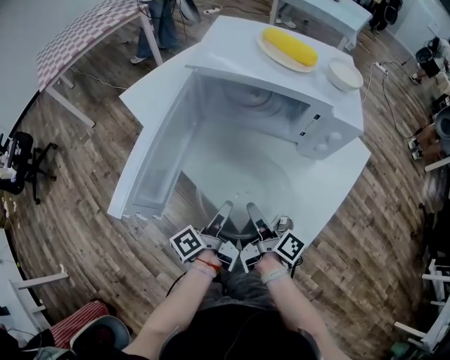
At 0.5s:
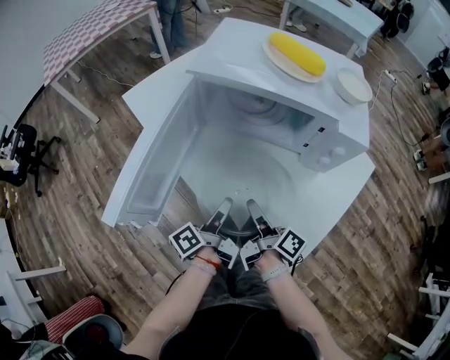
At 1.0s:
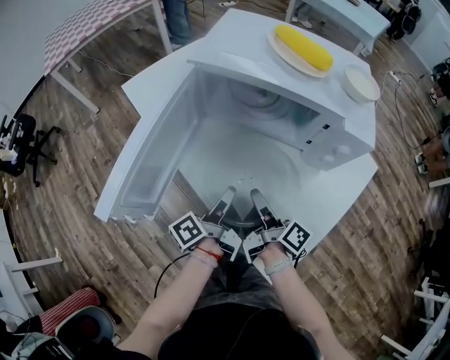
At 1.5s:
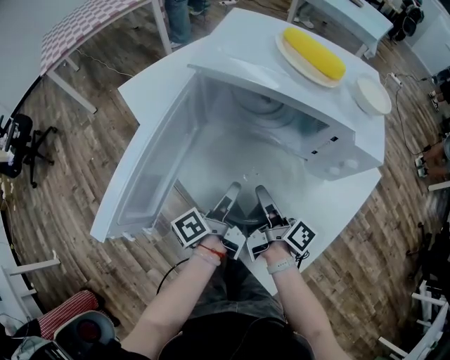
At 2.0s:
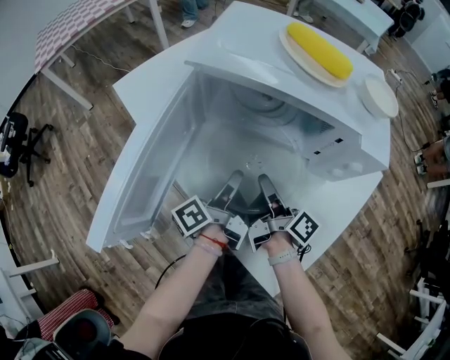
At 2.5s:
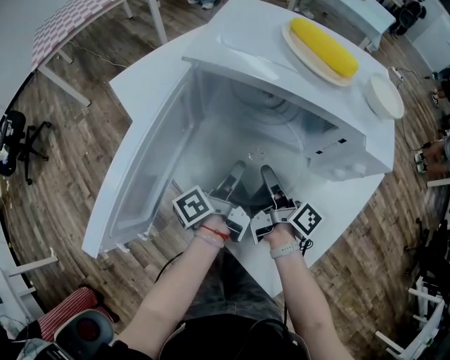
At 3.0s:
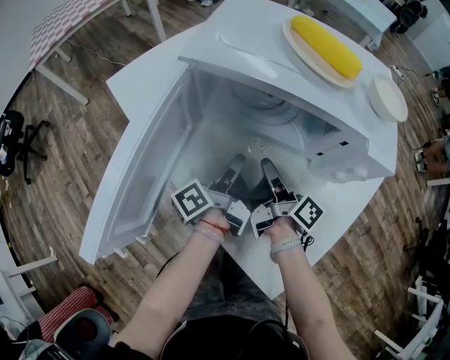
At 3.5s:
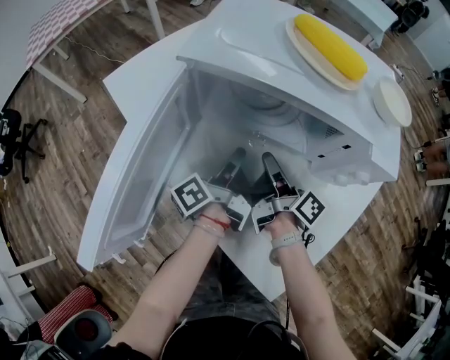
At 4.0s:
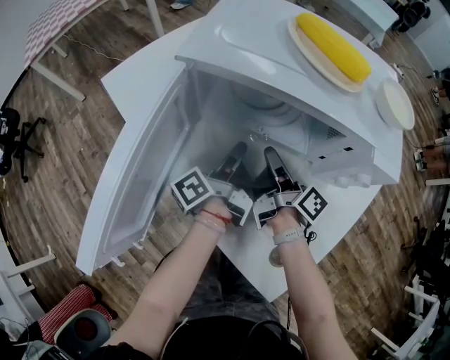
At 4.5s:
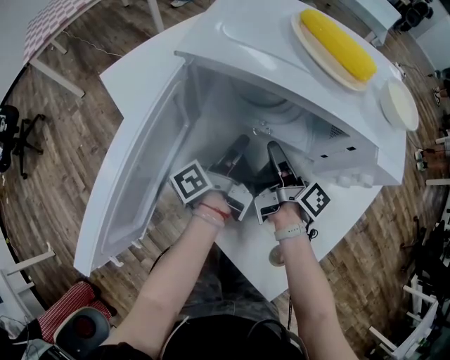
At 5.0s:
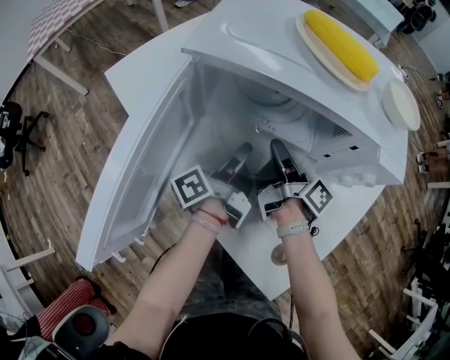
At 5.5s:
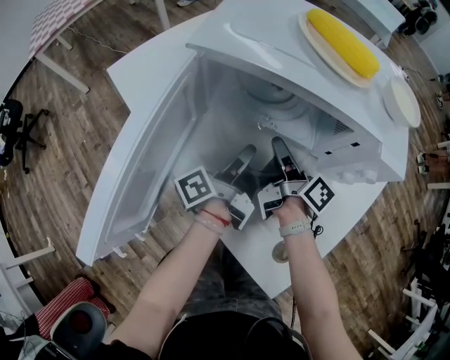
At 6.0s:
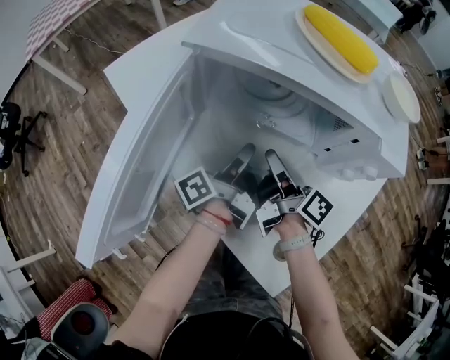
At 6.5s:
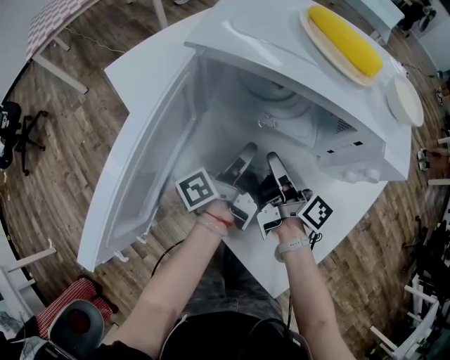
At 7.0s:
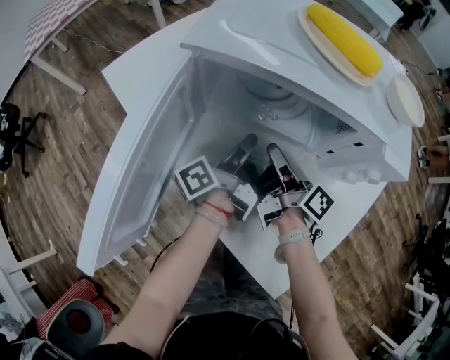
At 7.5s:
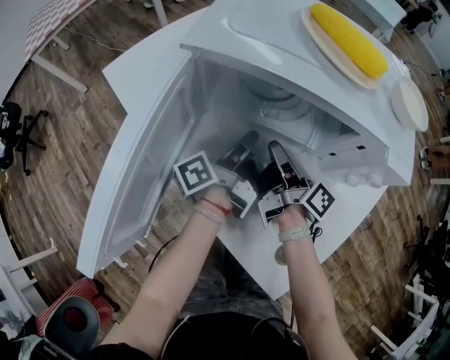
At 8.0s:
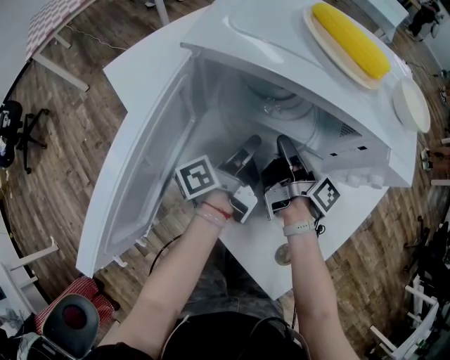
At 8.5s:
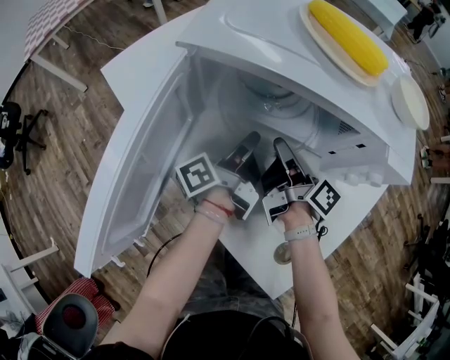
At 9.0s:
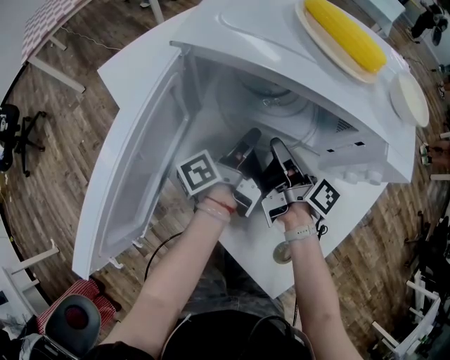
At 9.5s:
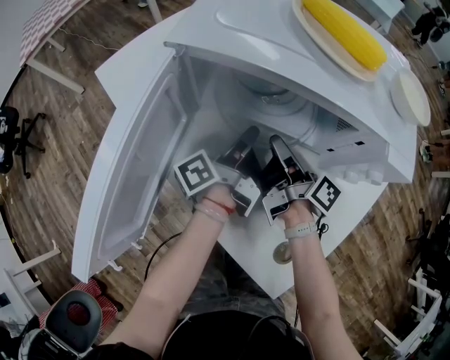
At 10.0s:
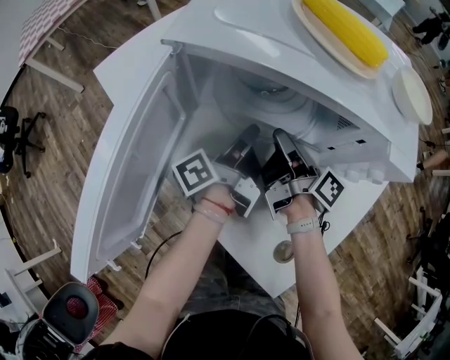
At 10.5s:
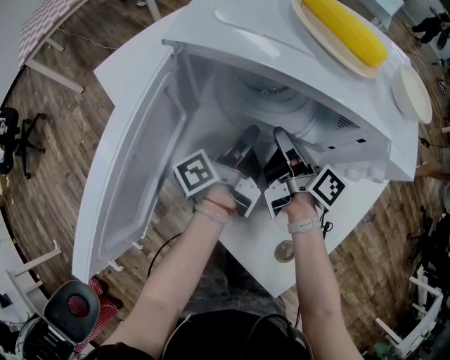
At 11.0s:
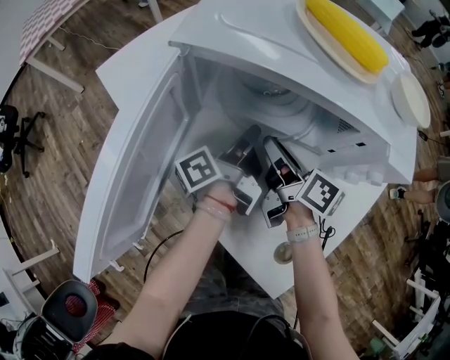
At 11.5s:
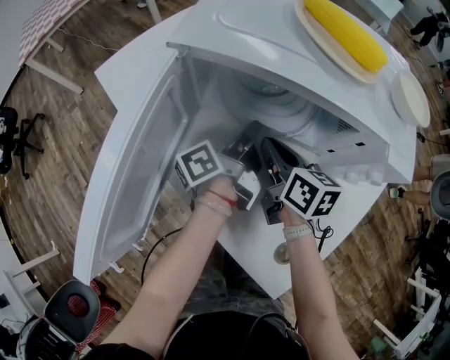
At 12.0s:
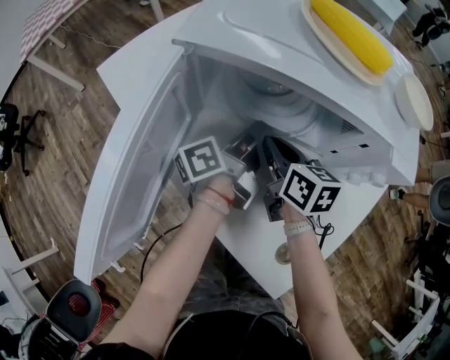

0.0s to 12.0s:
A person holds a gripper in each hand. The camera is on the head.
0.0s to 2.0s: The right gripper moves roughly 10 cm.
2.0s to 4.0s: The right gripper ends up about 10 cm from where it was.
10.0s to 12.0s: The right gripper twists about 50 degrees counterclockwise, seen from behind.

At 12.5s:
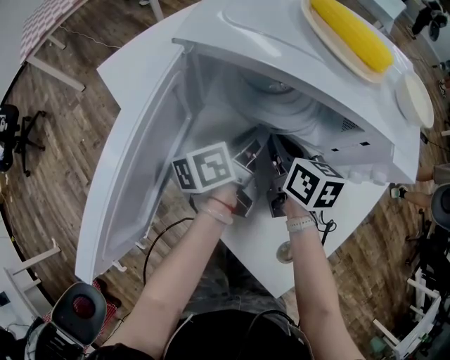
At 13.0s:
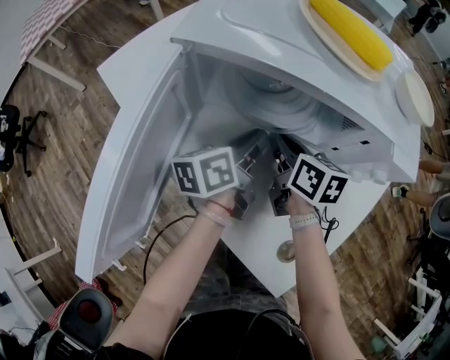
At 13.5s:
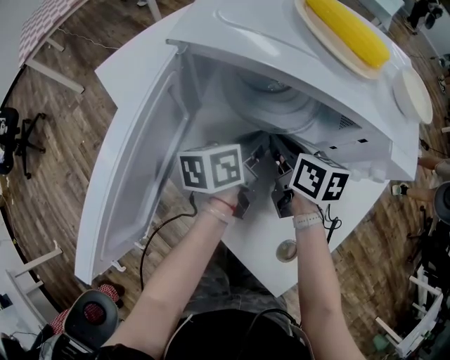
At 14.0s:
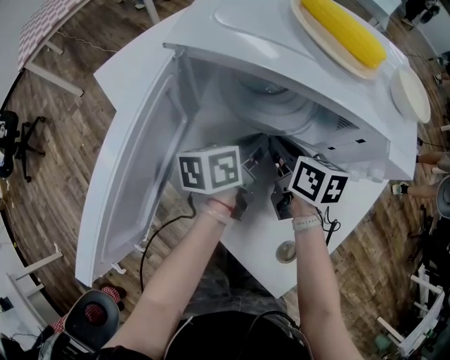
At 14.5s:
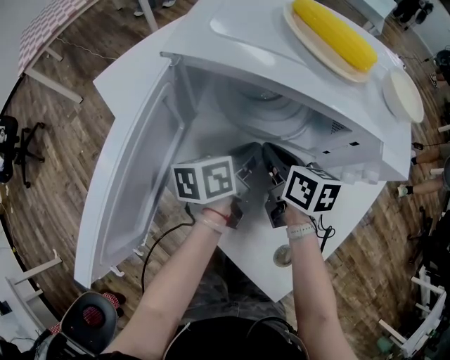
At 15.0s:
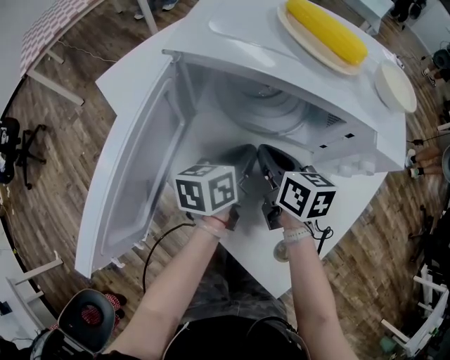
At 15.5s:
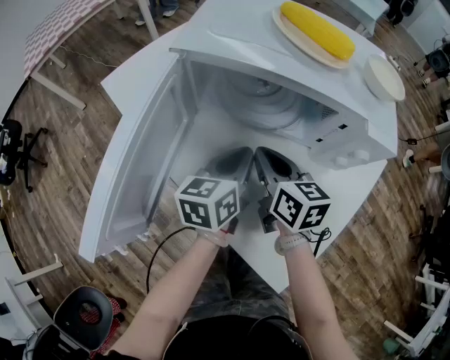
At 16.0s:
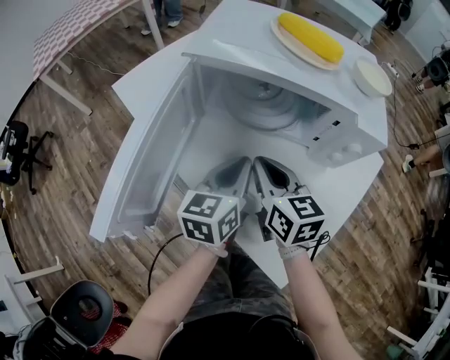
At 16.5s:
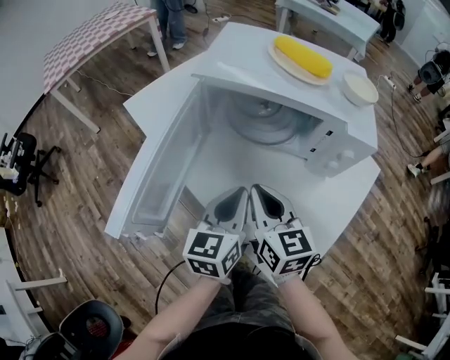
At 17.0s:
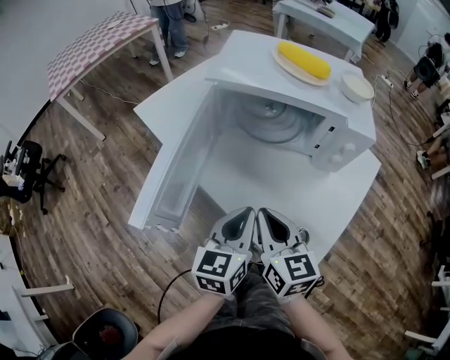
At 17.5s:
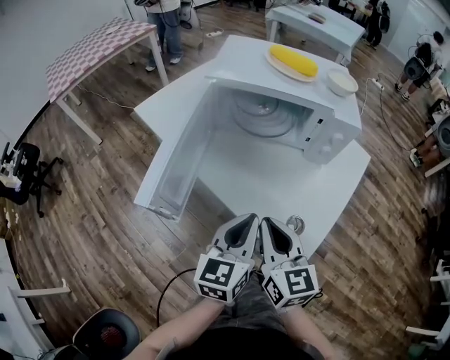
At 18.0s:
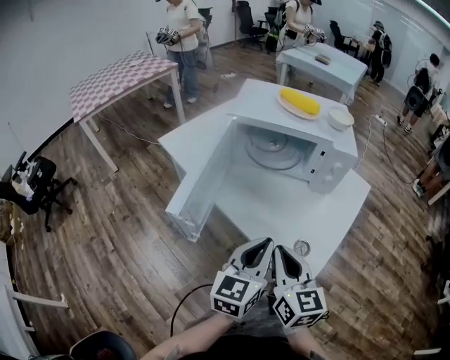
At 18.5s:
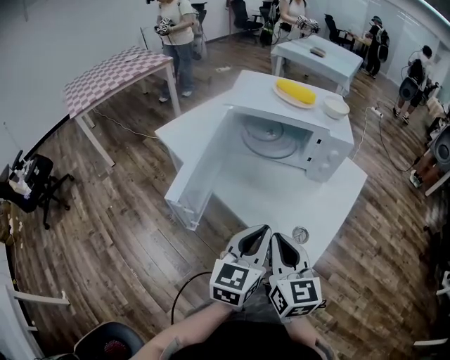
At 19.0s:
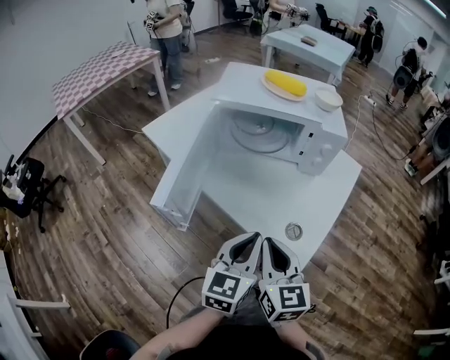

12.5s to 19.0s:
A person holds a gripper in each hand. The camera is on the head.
14.5s to 17.0s: The right gripper moves about 25 cm, and rotates some 30 degrees.
17.0s to 19.0s: The right gripper moves roughly 10 cm.

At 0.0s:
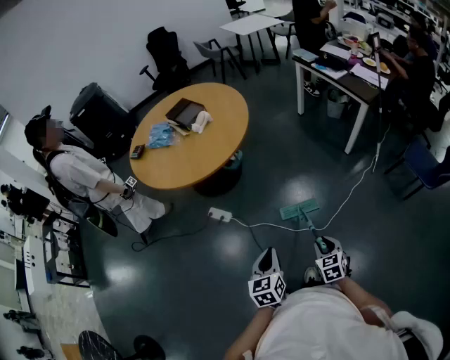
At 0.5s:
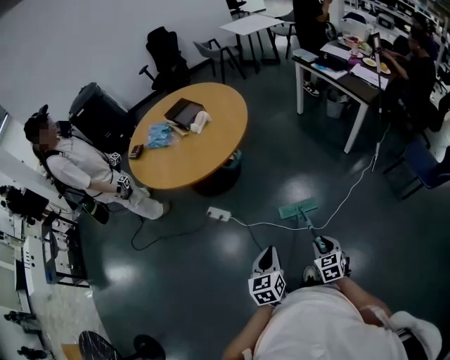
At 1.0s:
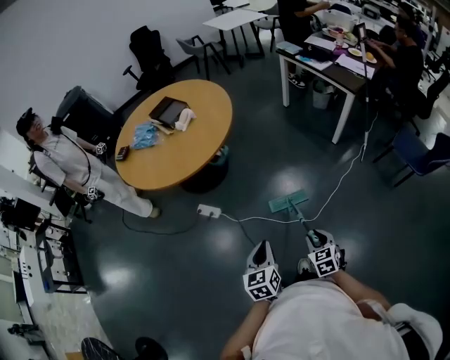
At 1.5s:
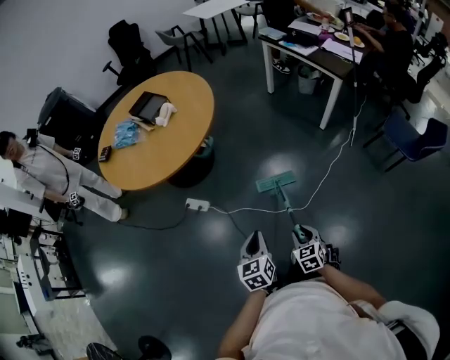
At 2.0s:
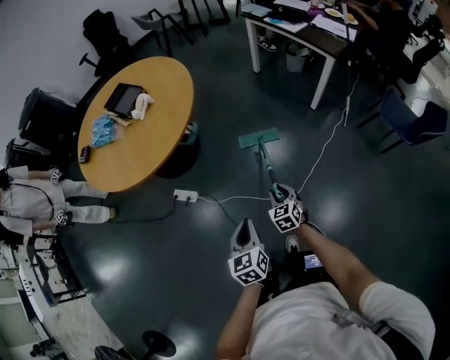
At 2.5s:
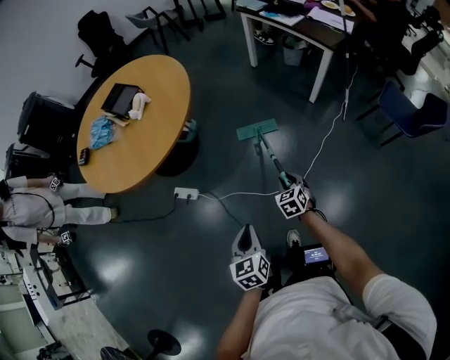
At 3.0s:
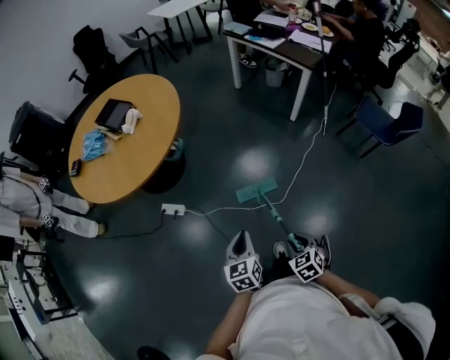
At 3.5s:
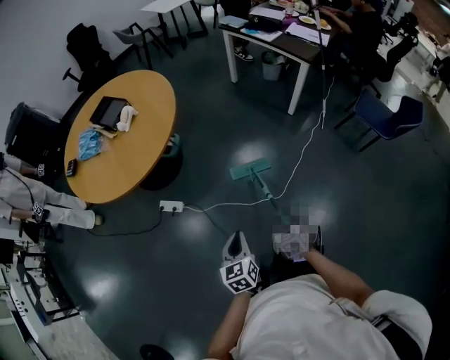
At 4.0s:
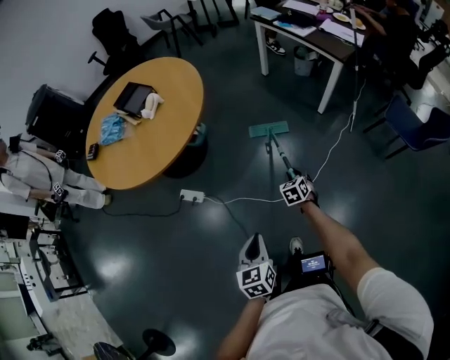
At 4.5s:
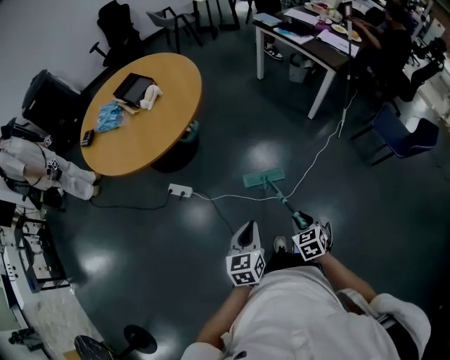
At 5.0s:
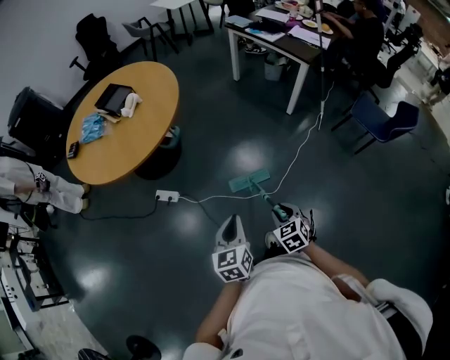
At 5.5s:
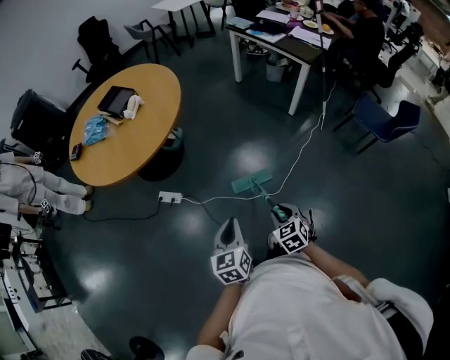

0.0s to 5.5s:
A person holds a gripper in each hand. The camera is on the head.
0.0s to 2.0s: The right gripper goes some 20 cm forward and downward. Meanwhile the left gripper moves forward, roughly 10 cm.
2.0s to 3.5s: The right gripper moves backward and to the right, about 15 cm. The left gripper goes about 5 cm backward.
3.5s to 5.5s: Both grippers travel together upward, roughly 5 cm. The right gripper reaches roughly 20 cm forward, then returns.

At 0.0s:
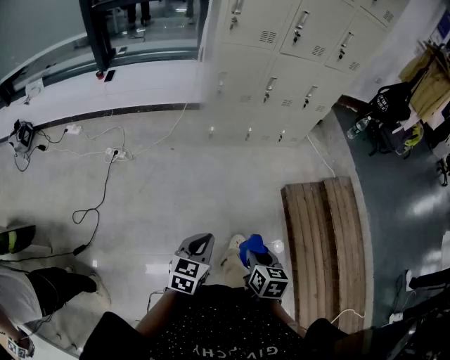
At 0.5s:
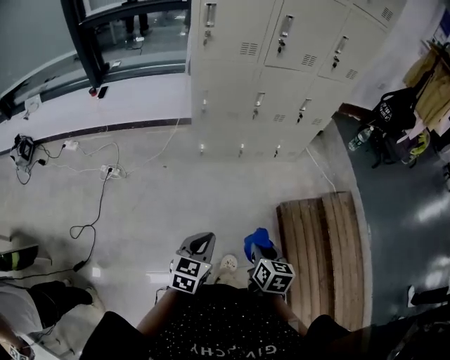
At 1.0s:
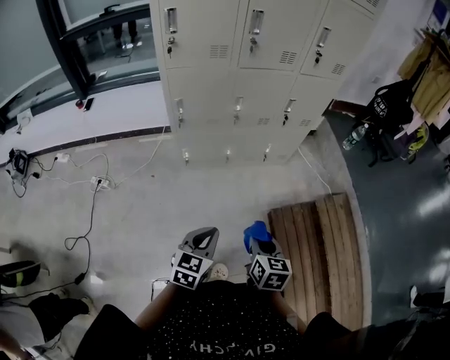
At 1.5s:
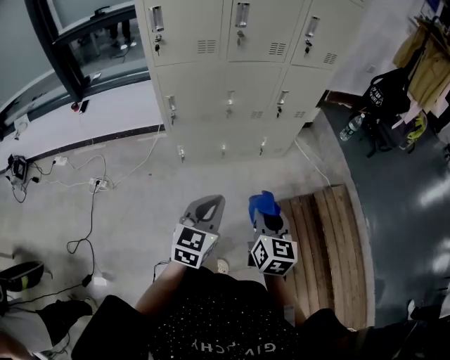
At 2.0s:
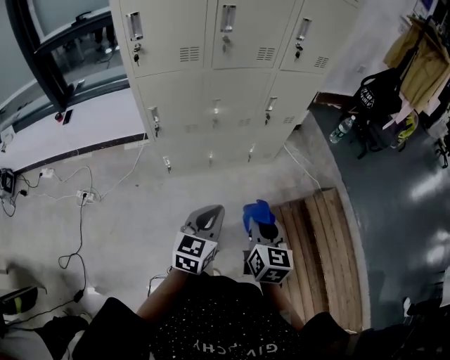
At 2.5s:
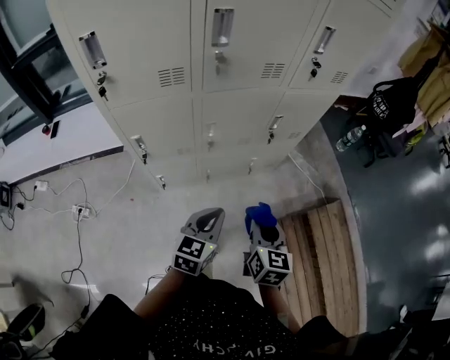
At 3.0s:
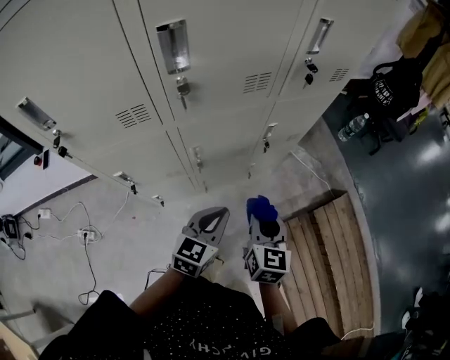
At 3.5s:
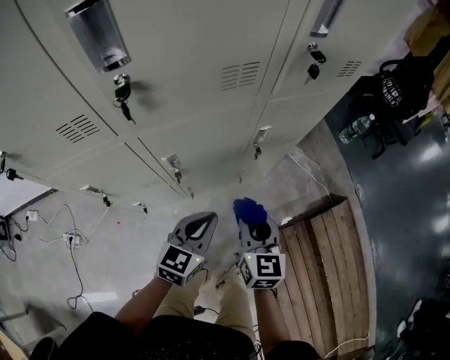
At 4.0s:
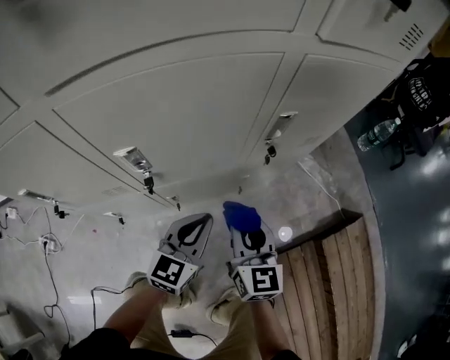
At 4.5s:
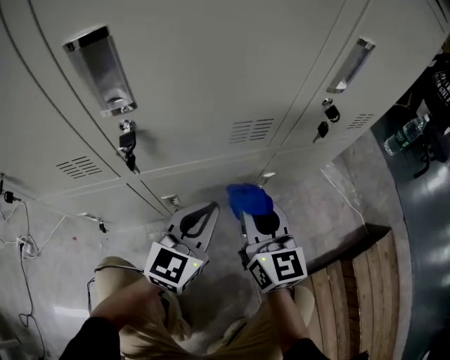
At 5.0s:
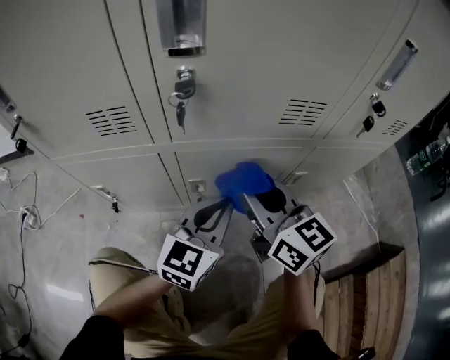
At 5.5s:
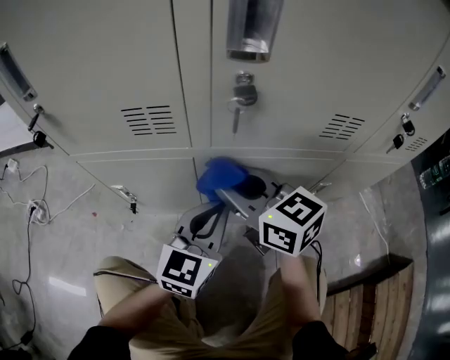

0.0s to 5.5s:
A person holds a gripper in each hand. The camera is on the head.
0.0s to 2.0s: The two grippers go some 40 cm forward and to the right. The right gripper changes its angle by approximately 20 degrees.
2.0s to 3.5s: Both grippers move forward, roughly 35 cm.
3.5s to 5.5s: The grippers both shift downward by about 35 cm. The left gripper changes its angle by about 30 degrees, while the right gripper swivels some 60 degrees.
